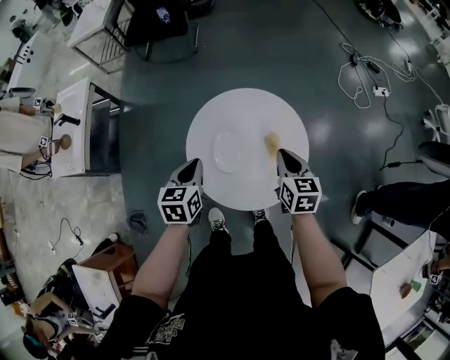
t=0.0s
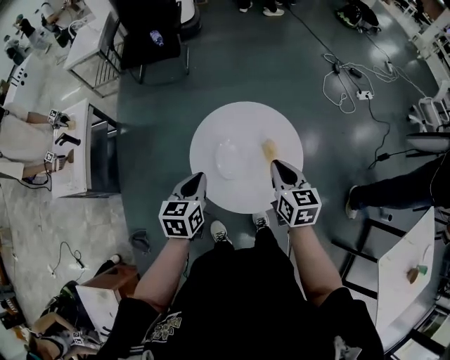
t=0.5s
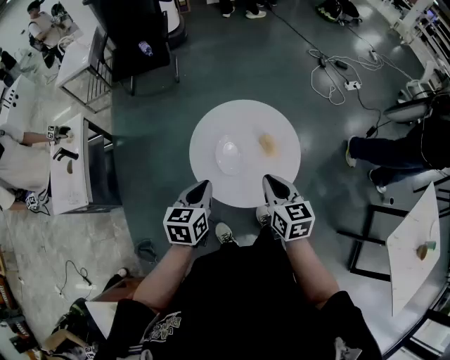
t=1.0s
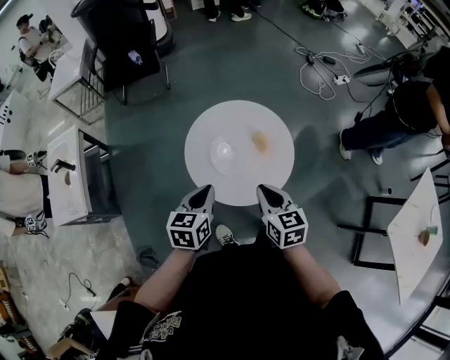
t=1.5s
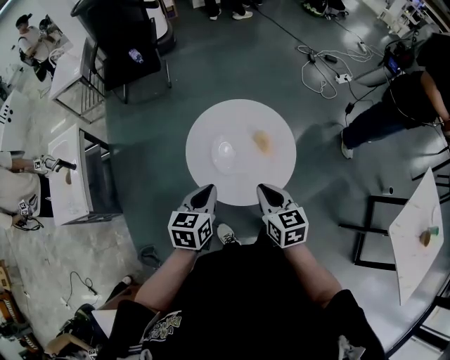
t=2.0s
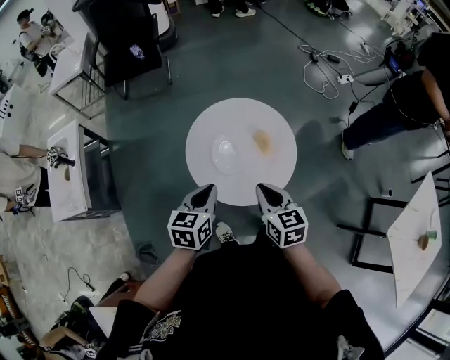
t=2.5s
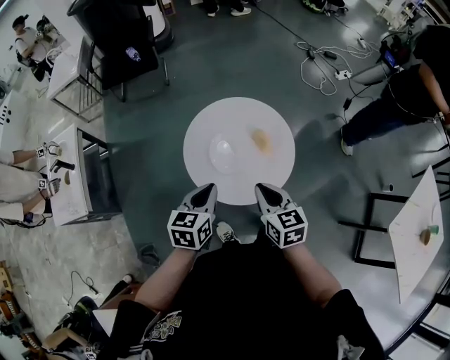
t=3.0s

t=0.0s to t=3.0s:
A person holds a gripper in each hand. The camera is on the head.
t=0.0s to t=1.5s: The right gripper is displaced backward by approximately 15 cm; the left gripper travels backward and upward by roughly 10 cm, and turns by roughly 20 degrees.
t=1.5s to t=3.0s: There are only small adjustments of the grippers.

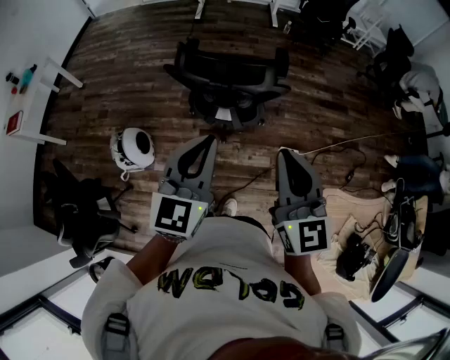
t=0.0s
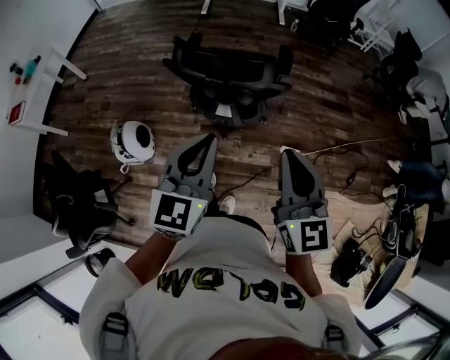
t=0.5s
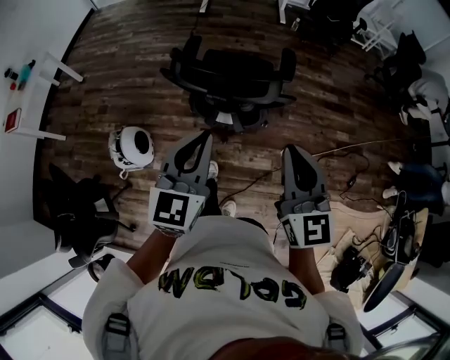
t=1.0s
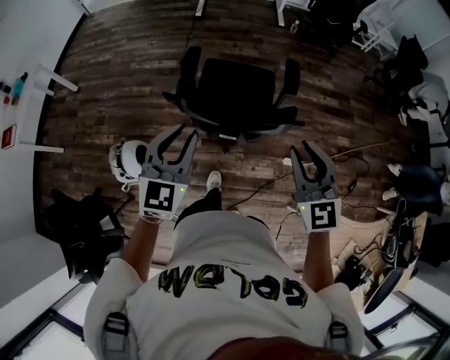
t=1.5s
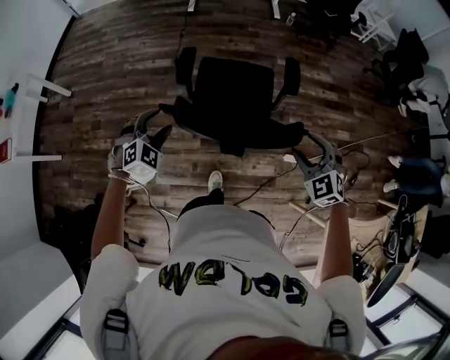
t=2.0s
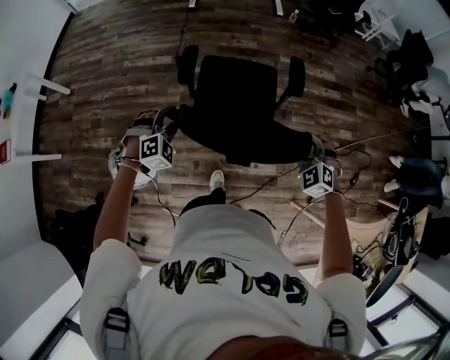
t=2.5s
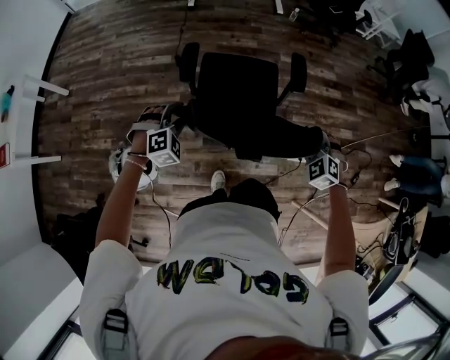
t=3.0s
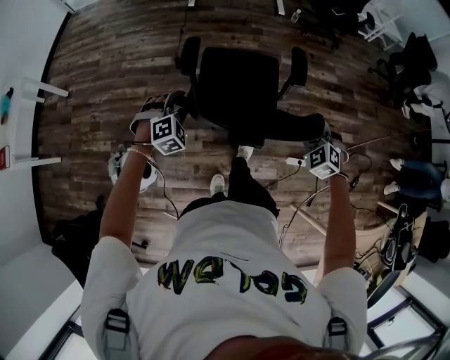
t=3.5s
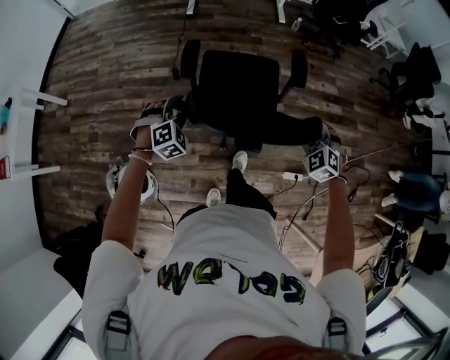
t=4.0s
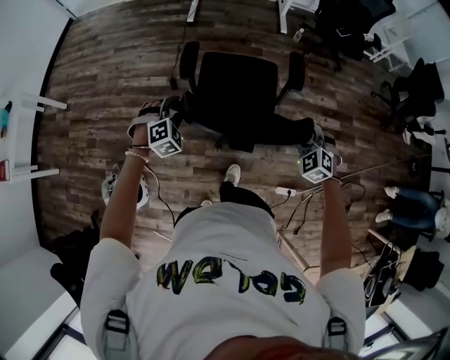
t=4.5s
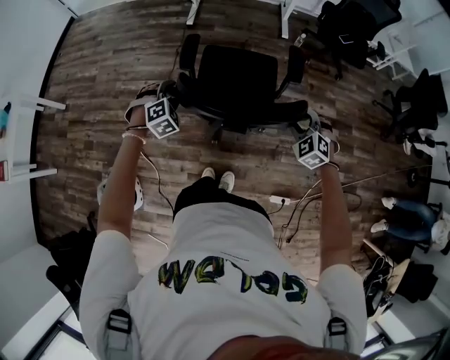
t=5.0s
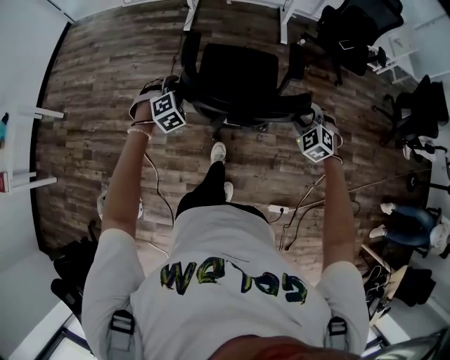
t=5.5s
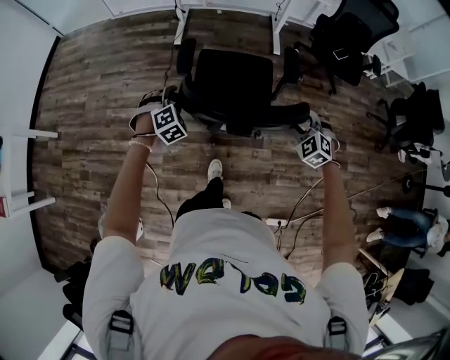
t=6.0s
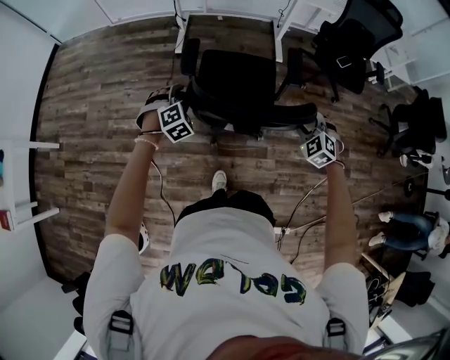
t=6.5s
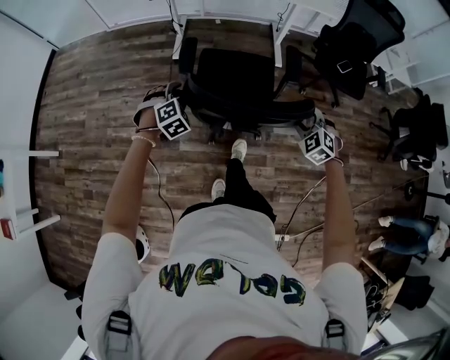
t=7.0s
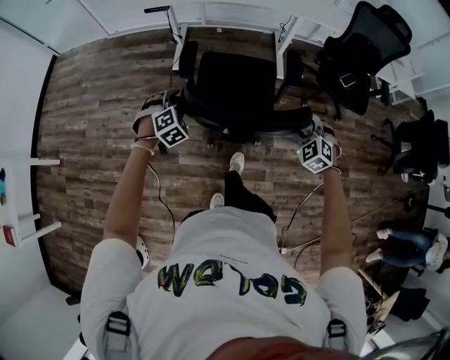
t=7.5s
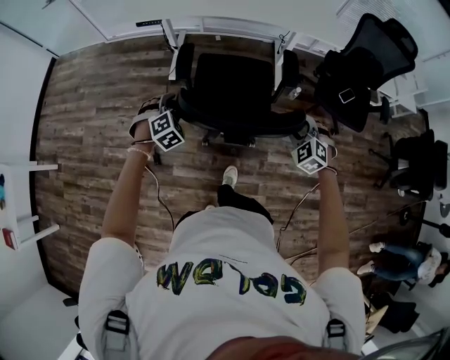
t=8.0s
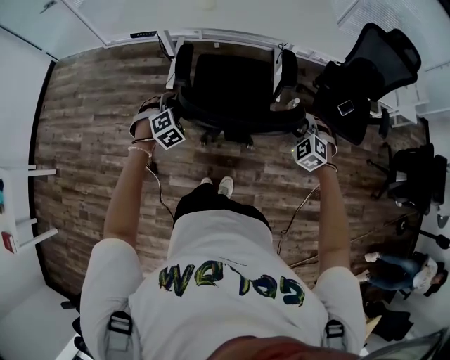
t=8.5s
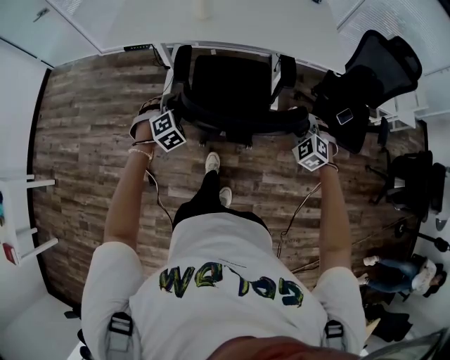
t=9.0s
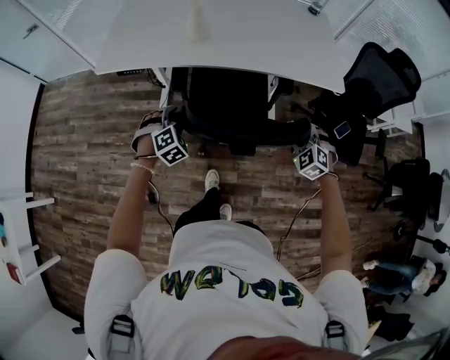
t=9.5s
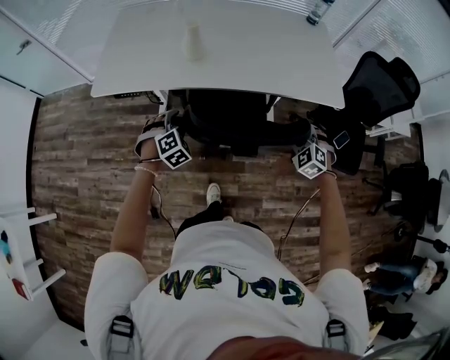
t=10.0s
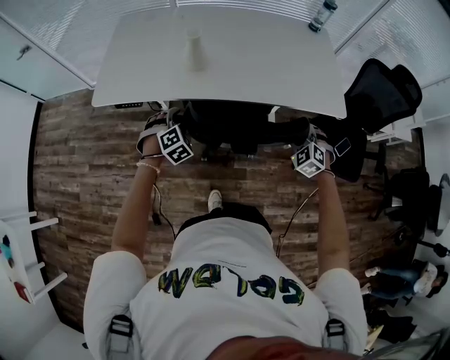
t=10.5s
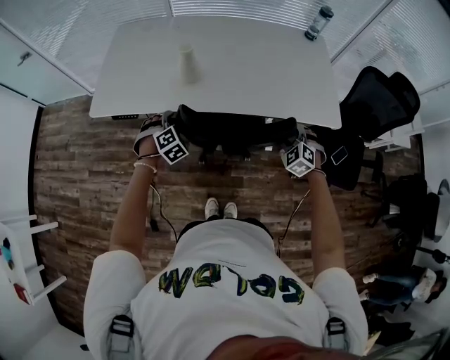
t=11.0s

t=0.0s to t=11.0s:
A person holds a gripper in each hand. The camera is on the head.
t=0.0s to t=2.0s: The left gripper heads forward, downward and to the left, covering roughly 40 cm, angles its fingers downward, by approximately 30 degrees, and opens its fingers; the right gripper shifts about 35 cm forward and downward, tips its fingers downward by about 40 degrees, and opens.
t=2.0s to t=3.5s: The right gripper goes about 15 cm forward and downward, while the left gripper goes about 15 cm forward.
t=3.5s to t=5.5s: The pair of grippers is taken forward, approximately 40 cm.
t=5.5s to t=7.5s: Both grippers move forward, approximately 35 cm.
t=7.5s to t=9.0s: Both grippers travel together forward, approximately 25 cm.
t=9.0s to t=11.0s: Both grippers travel together forward, some 25 cm.

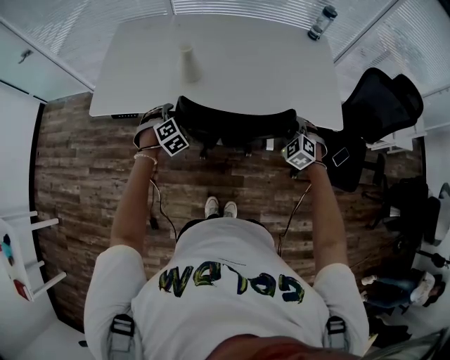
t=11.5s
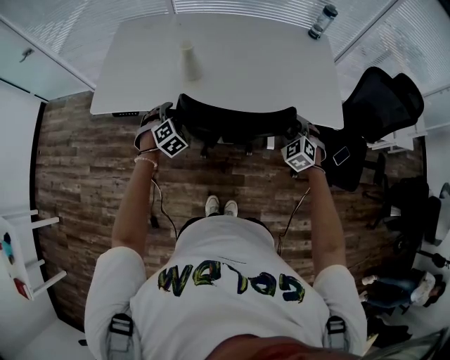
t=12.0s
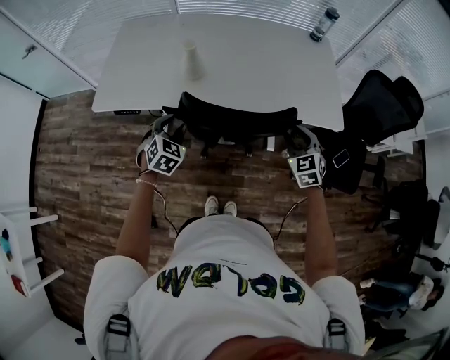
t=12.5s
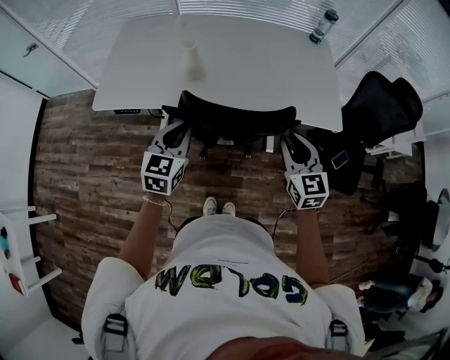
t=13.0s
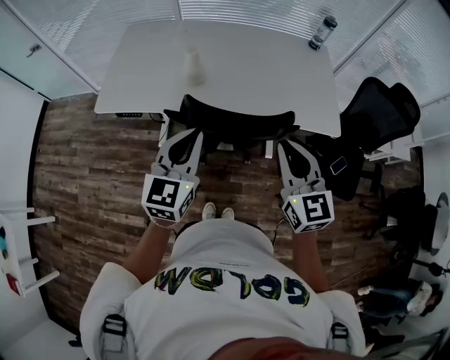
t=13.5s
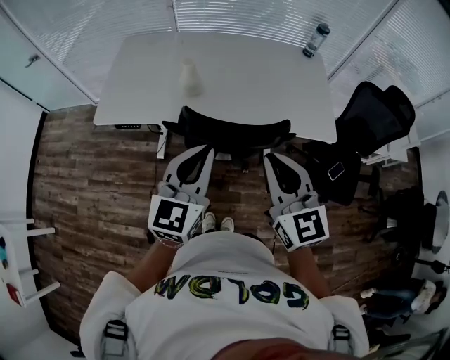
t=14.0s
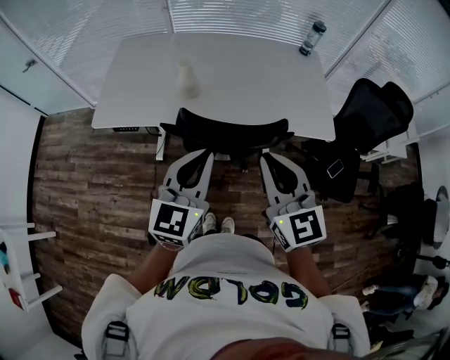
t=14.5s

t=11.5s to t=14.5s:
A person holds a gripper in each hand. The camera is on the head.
t=11.5s to t=13.0s: Both grippers move upward and backward, some 20 cm. The left gripper angles its fingers upward, by some 30 degrees, and closes its fingers, while the right gripper twists approximately 40 degrees clockwise, seen from behind, and closes.
t=13.0s to t=14.5s: The left gripper is displaced upward, backward and to the right by about 15 cm. Meanwhile the right gripper shifts some 15 cm upward, to the left and backward.

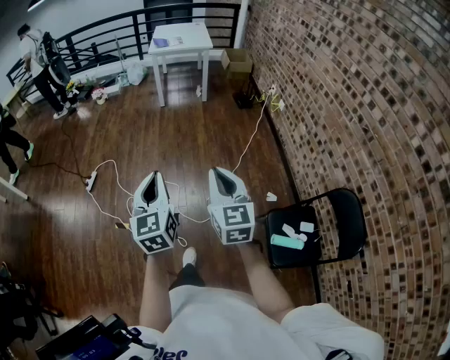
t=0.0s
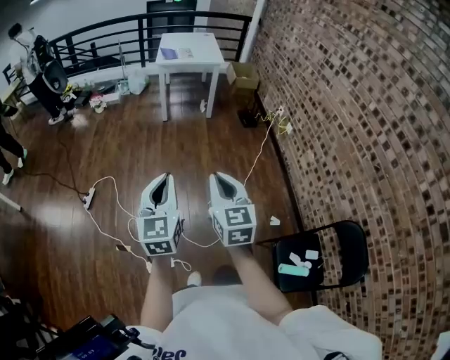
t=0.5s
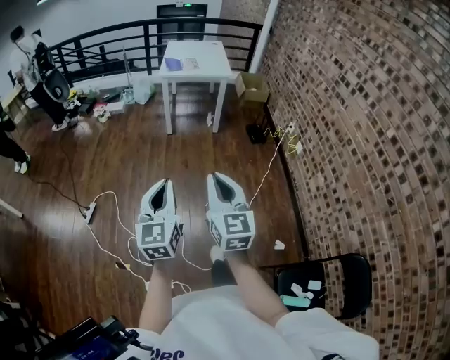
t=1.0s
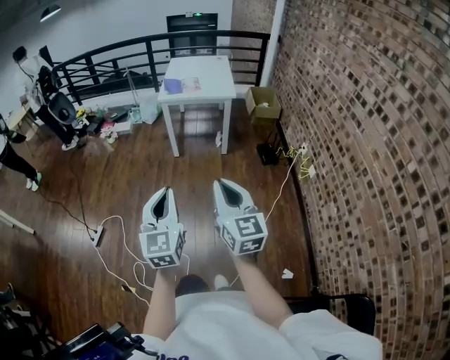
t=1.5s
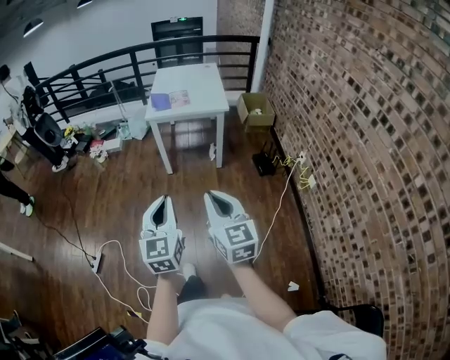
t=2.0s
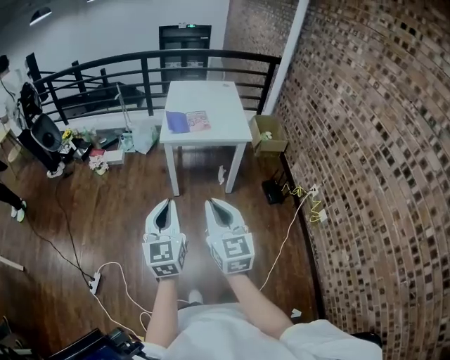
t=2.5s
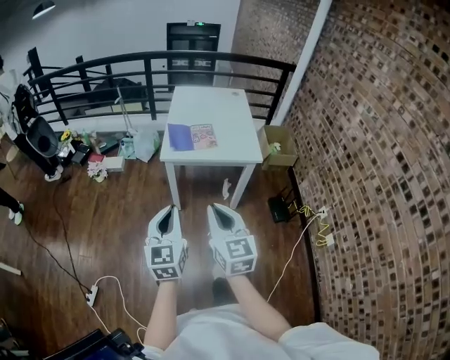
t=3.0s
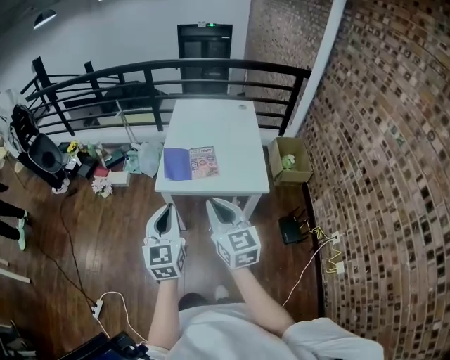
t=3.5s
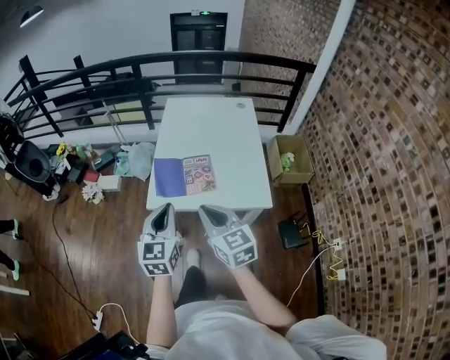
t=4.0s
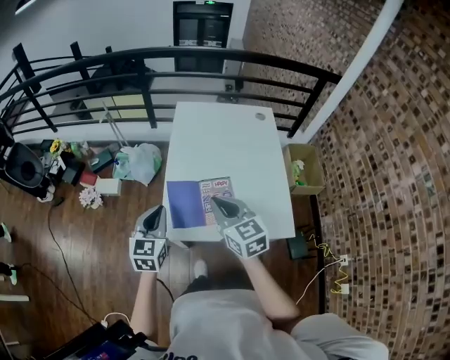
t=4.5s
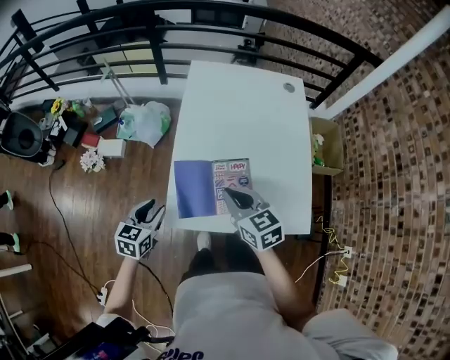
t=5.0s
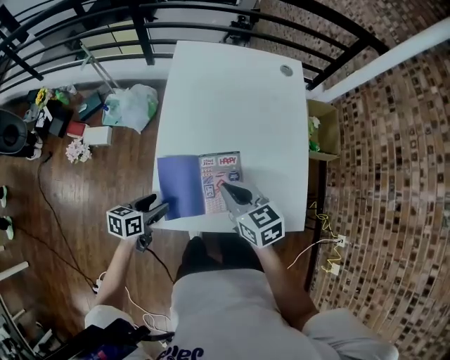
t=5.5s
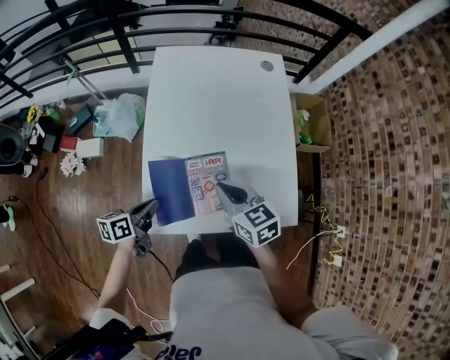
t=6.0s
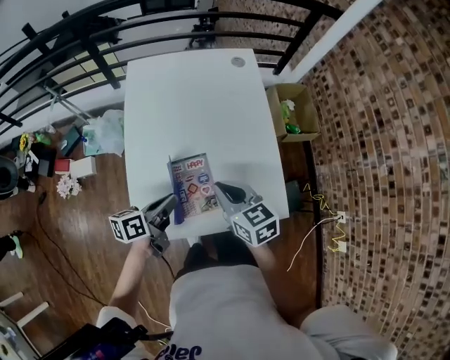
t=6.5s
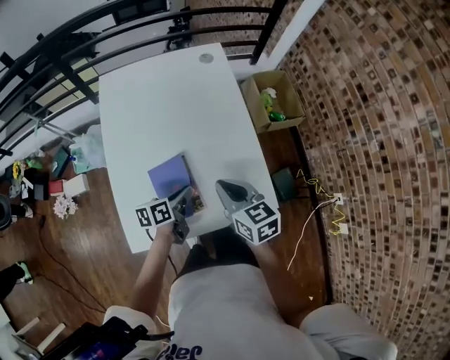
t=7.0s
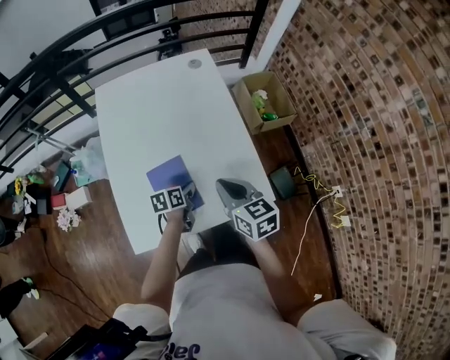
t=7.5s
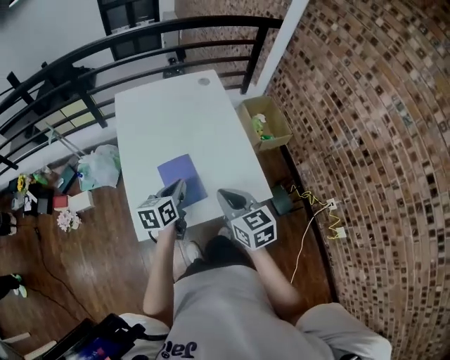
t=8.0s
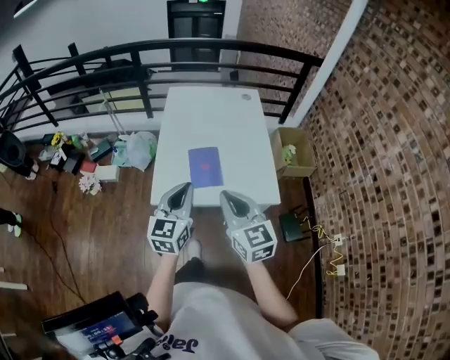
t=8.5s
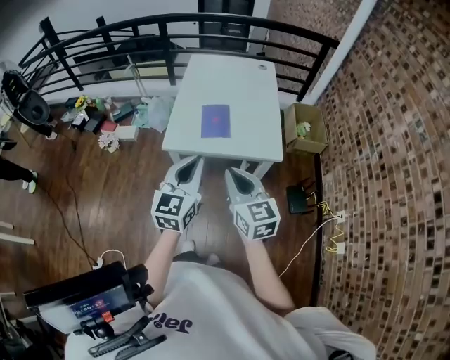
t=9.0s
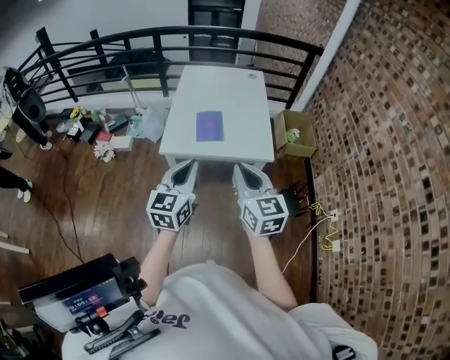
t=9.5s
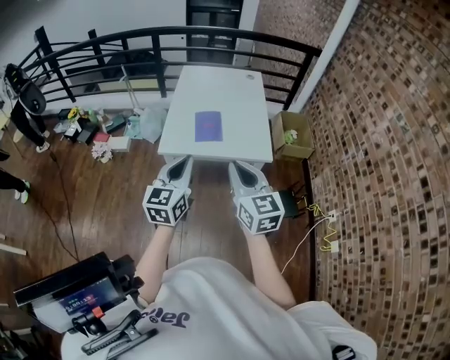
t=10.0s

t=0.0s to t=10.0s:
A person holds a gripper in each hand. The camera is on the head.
t=0.0s to t=2.0s: The two grippers travel together, forward, roughly 60 cm.
t=2.0s to t=4.0s: The two grippers travel together, forward, some 70 cm.
t=4.0s to t=6.0s: The left gripper heads downward and forward, covering roughly 35 cm, swivels some 60 degrees, and opens, then closes once more. The right gripper heads forward and downward, covering some 30 cm, and rotates roughly 20 degrees.
t=6.0s to t=8.0s: The right gripper shifts about 15 cm to the right, backward and upward, and changes its angle by approximately 20 degrees. The left gripper travels to the right and upward by approximately 20 cm, and changes its angle by roughly 20 degrees.
t=8.0s to t=10.0s: The grippers both shift backward and upward by some 35 cm. The right gripper rotates roughly 20 degrees. Meanwhile the left gripper swivels about 40 degrees.
